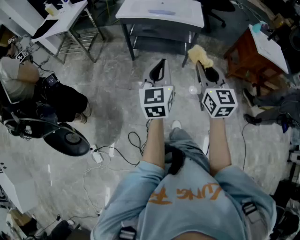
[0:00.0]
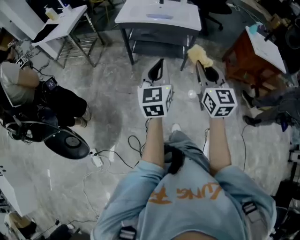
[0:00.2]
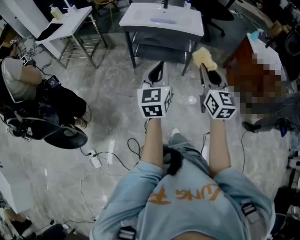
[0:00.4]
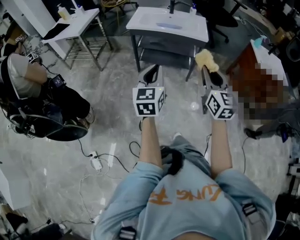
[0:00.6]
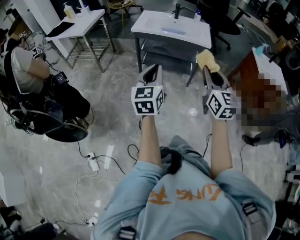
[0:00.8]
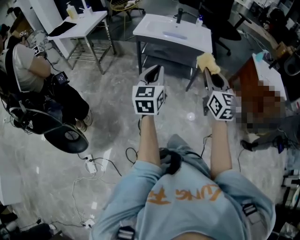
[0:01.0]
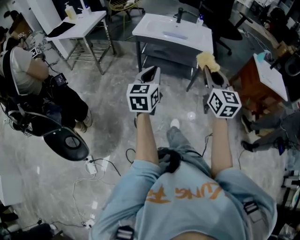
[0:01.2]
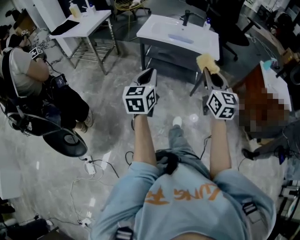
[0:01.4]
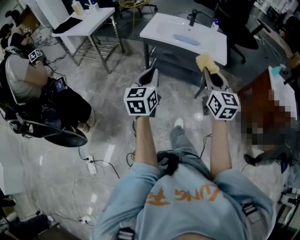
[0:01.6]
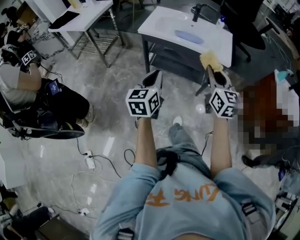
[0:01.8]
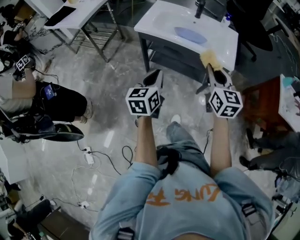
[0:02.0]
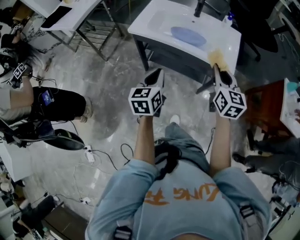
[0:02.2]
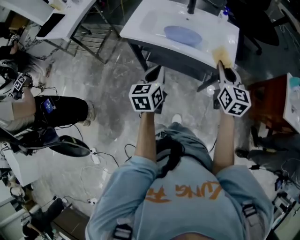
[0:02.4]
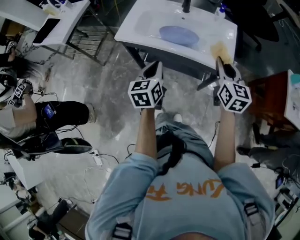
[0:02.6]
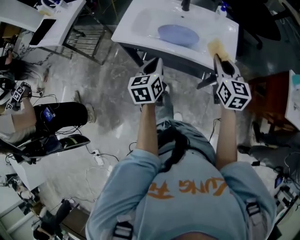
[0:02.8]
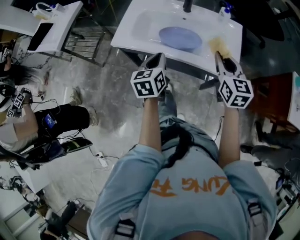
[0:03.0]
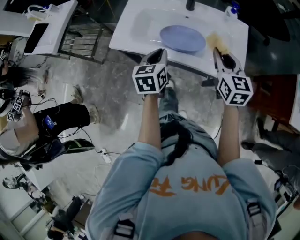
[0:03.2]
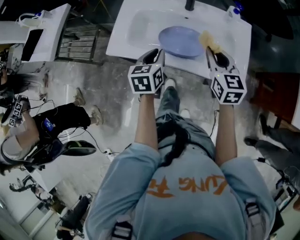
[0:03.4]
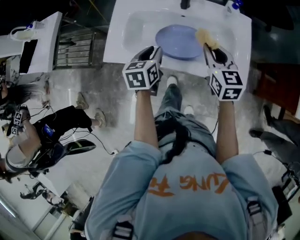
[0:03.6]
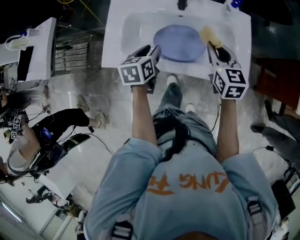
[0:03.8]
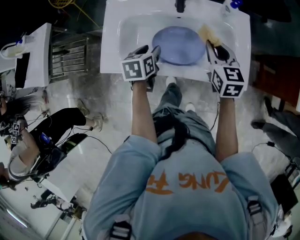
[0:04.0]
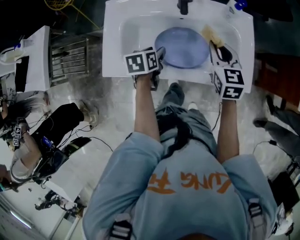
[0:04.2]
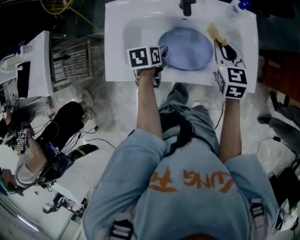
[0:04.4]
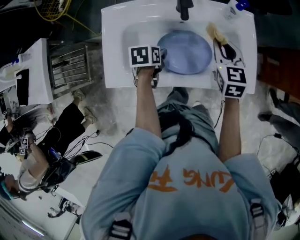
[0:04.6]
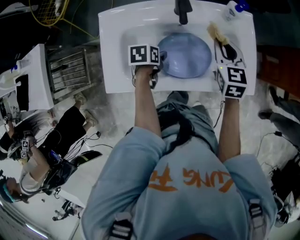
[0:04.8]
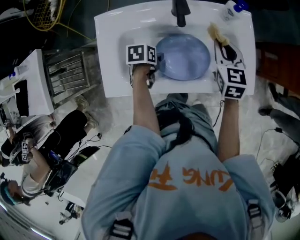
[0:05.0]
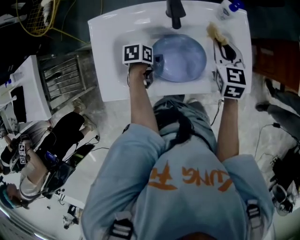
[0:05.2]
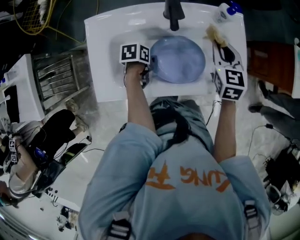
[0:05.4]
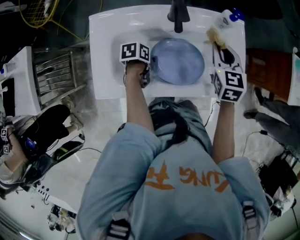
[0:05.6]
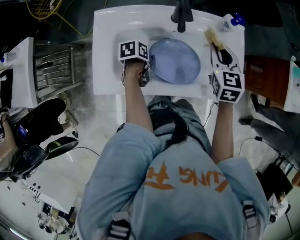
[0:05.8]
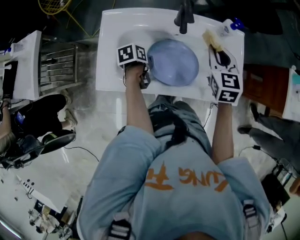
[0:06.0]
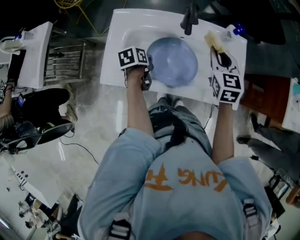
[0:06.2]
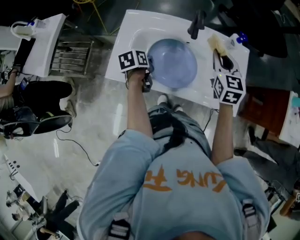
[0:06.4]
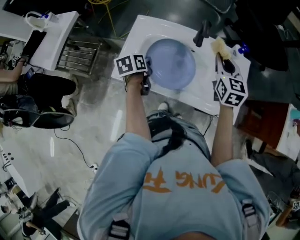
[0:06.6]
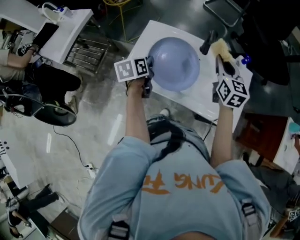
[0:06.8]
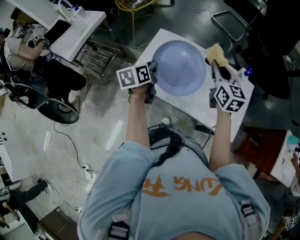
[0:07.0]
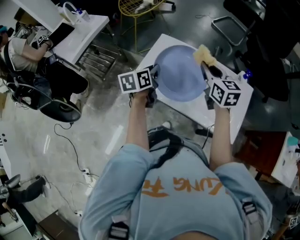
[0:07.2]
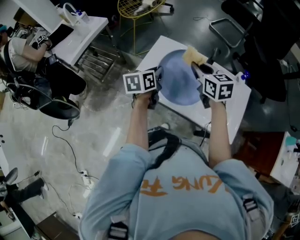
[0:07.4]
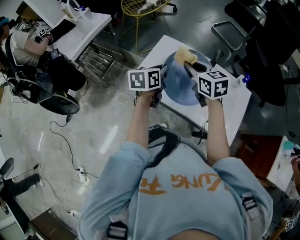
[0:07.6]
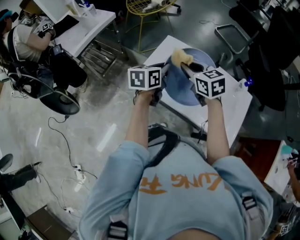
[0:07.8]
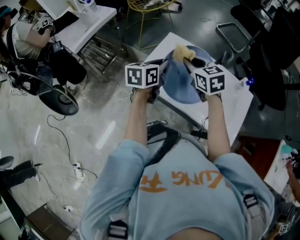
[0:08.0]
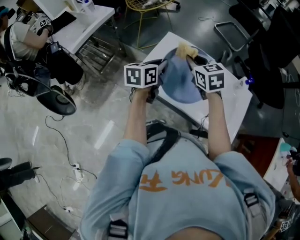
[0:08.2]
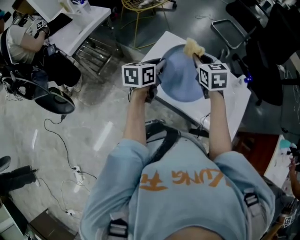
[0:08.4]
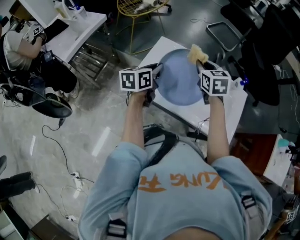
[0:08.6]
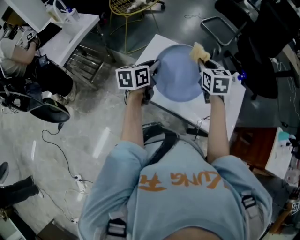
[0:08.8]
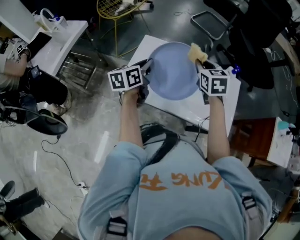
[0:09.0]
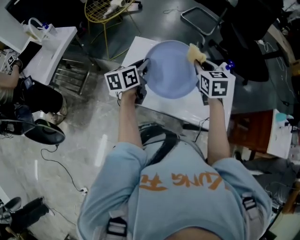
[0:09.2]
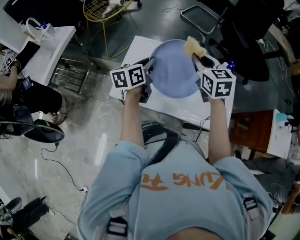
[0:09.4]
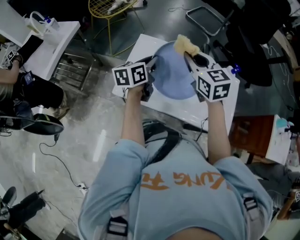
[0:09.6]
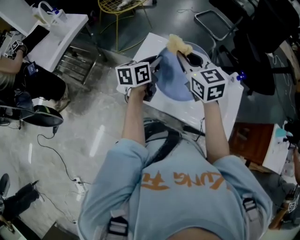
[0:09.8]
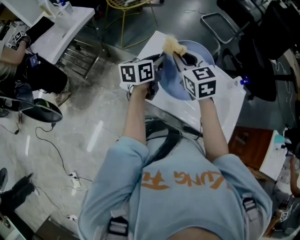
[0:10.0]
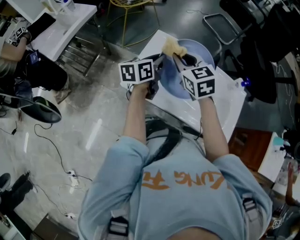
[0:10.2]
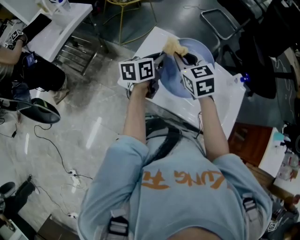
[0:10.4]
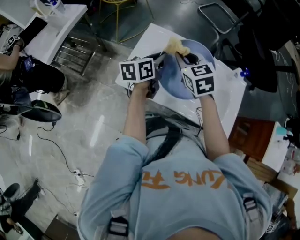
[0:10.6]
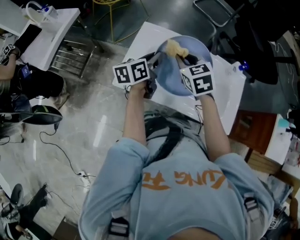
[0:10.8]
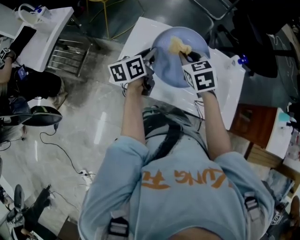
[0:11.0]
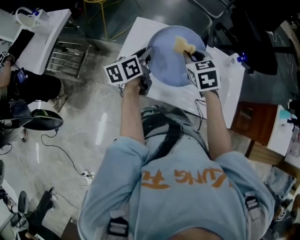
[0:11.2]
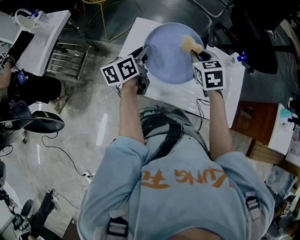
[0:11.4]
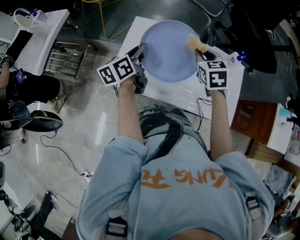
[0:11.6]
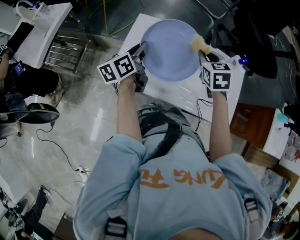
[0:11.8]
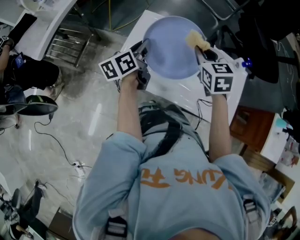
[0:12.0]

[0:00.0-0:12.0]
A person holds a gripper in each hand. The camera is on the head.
0.0 to 1.6 s: The right gripper heads forward, covering about 20 cm; the left gripper heads forward and to the left, covering approximately 20 cm.
1.6 to 3.0 s: Both grippers are carried forward, approximately 40 cm.
3.0 to 4.4 s: The left gripper changes place by approximately 25 cm, tips its fingers downward by roughly 30 degrees, and opens up, while the right gripper moves about 20 cm.
4.4 to 6.0 s: The left gripper changes its angle by approximately 20 degrees, and closes its fingers, while the right gripper ends up roughly 5 cm from where it was.
6.0 to 7.6 s: The right gripper ends up about 25 cm from where it was, and changes its angle by roughly 40 degrees, while the left gripper goes some 25 cm upward, and tips its fingers upward by some 30 degrees.
7.6 to 9.0 s: The right gripper is displaced to the right by about 10 cm, and changes its angle by roughly 30 degrees.
9.0 to 10.4 s: The right gripper moves to the left, about 15 cm, and changes its angle by some 20 degrees.
10.4 to 12.0 s: The right gripper goes some 10 cm to the right.

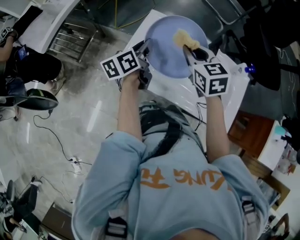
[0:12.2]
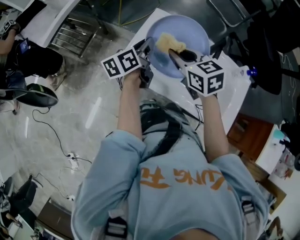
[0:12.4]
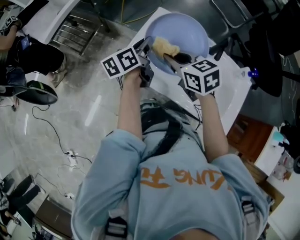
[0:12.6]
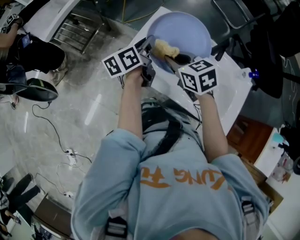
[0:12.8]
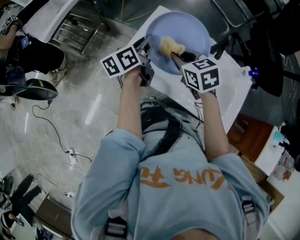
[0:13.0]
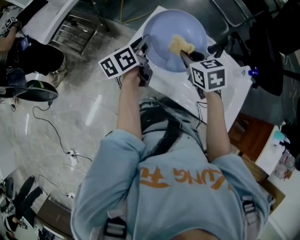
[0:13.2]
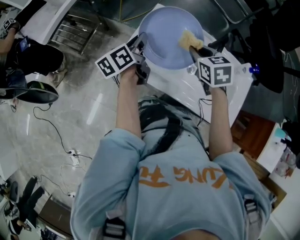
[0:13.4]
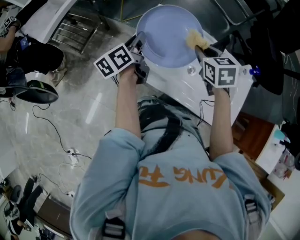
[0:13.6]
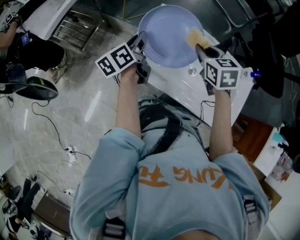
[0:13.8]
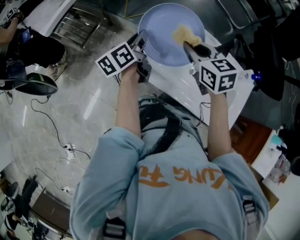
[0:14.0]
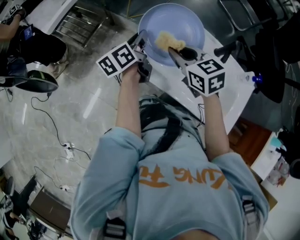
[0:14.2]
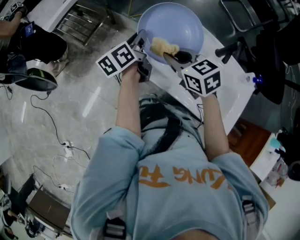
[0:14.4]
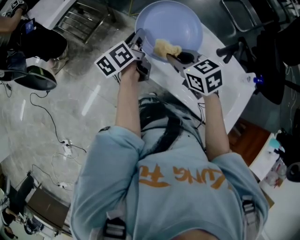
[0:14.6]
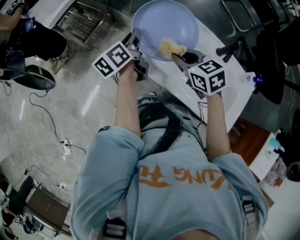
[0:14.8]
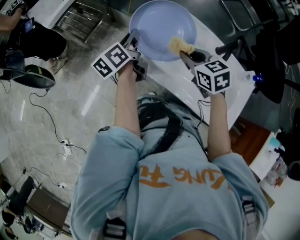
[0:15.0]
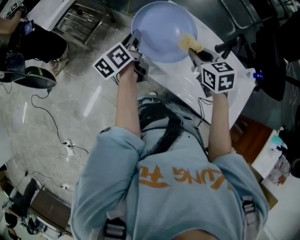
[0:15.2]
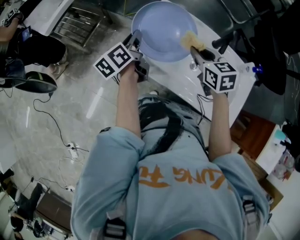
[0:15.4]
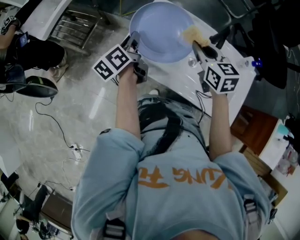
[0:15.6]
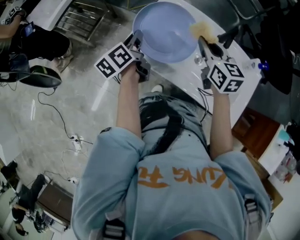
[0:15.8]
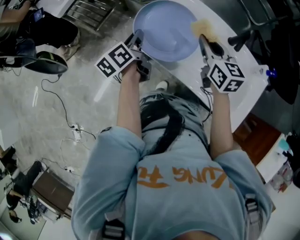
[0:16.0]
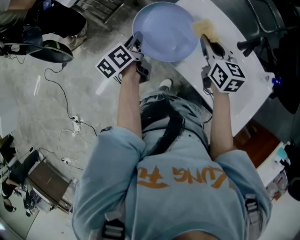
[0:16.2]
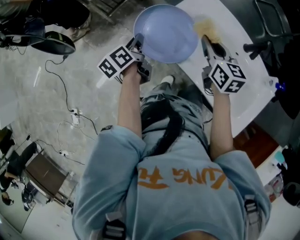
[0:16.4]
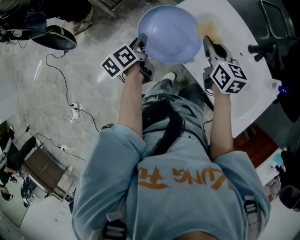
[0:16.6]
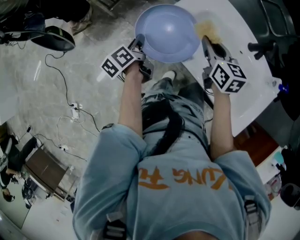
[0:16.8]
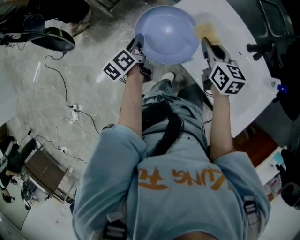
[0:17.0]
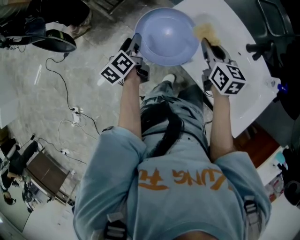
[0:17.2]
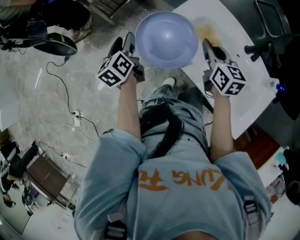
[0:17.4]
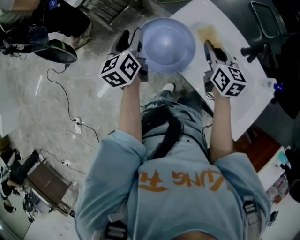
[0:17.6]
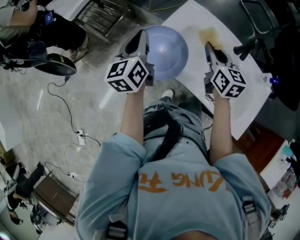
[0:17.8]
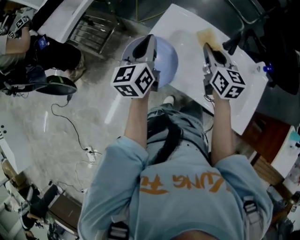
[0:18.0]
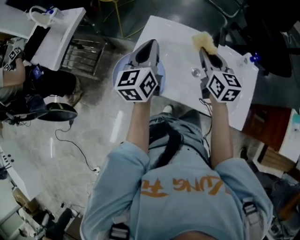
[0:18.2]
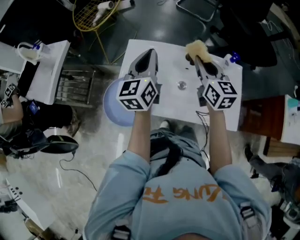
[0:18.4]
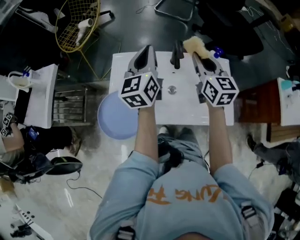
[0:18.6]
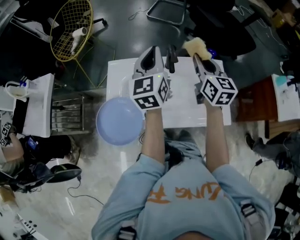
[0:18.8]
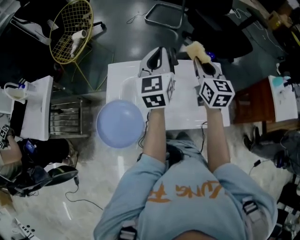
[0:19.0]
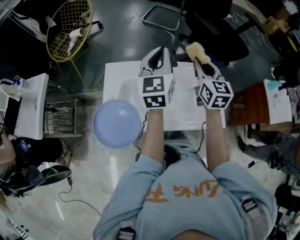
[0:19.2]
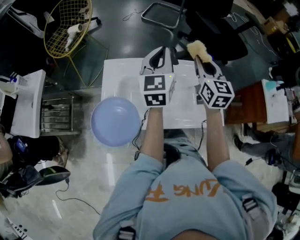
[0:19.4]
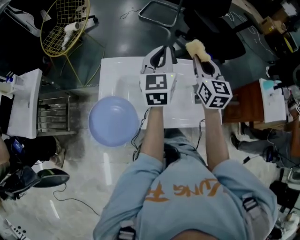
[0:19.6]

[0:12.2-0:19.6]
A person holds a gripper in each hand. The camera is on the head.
12.2 to 13.6 s: The left gripper travels to the left by about 5 cm; the right gripper travels to the left and back again, some 10 cm each way.
13.6 to 15.2 s: The left gripper is displaced to the left by about 5 cm. The right gripper travels to the left and back again, some 15 cm each way.
15.2 to 16.6 s: The right gripper is displaced to the left by approximately 5 cm, and turns by roughly 20 degrees; the left gripper moves backward, to the left and downward, approximately 15 cm.
16.6 to 18.2 s: The right gripper changes place by approximately 15 cm, and turns by roughly 30 degrees. The left gripper shifts by about 30 cm, rotates some 60 degrees, and opens, then closes once more.
18.2 to 19.6 s: The right gripper is displaced to the right and upward by about 15 cm, and rotates some 30 degrees; the left gripper shifts roughly 20 cm to the right and forward, and changes its angle by some 20 degrees.

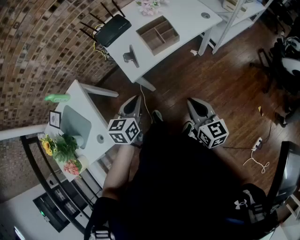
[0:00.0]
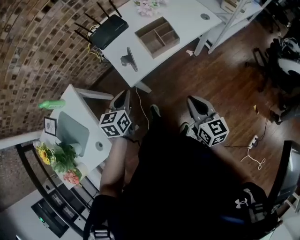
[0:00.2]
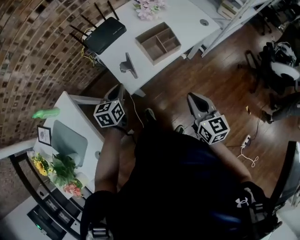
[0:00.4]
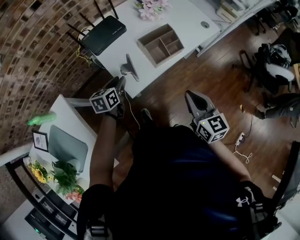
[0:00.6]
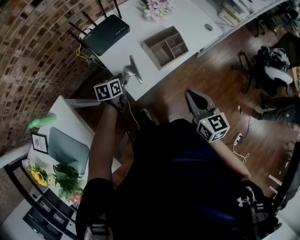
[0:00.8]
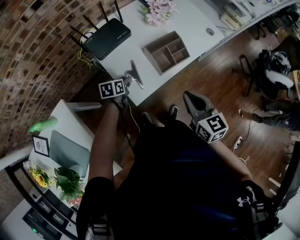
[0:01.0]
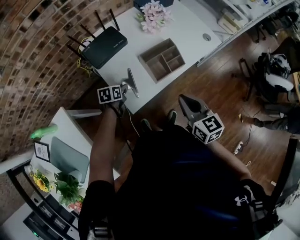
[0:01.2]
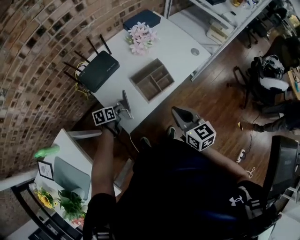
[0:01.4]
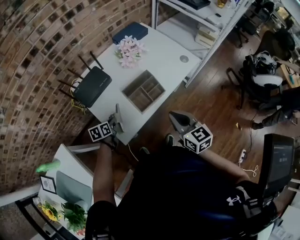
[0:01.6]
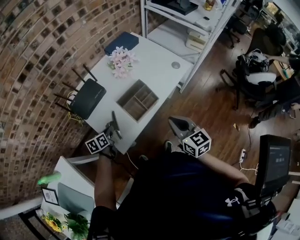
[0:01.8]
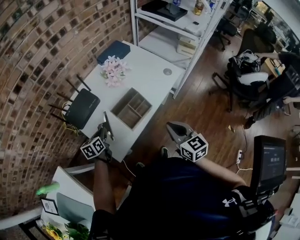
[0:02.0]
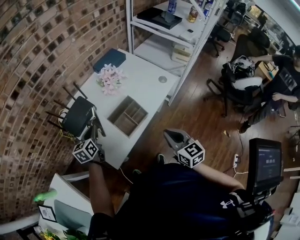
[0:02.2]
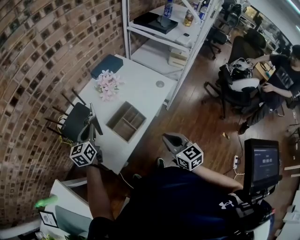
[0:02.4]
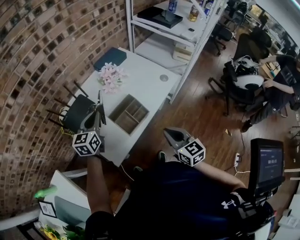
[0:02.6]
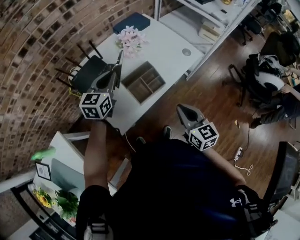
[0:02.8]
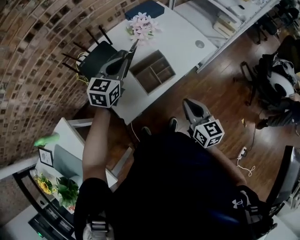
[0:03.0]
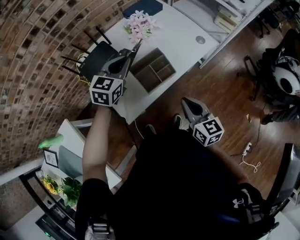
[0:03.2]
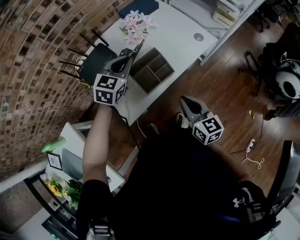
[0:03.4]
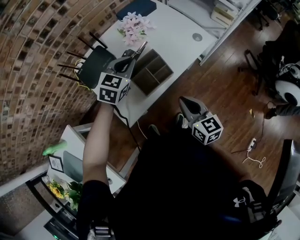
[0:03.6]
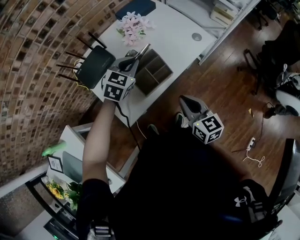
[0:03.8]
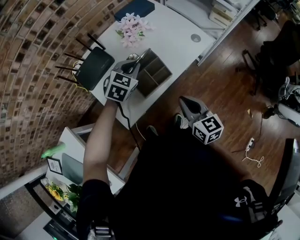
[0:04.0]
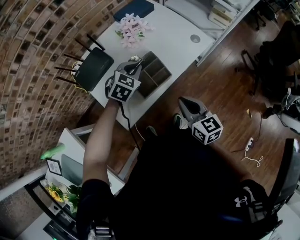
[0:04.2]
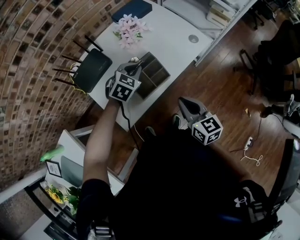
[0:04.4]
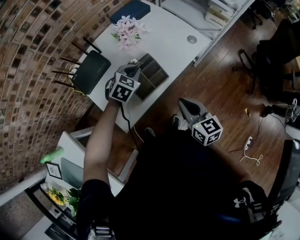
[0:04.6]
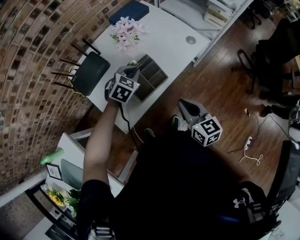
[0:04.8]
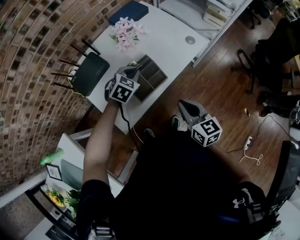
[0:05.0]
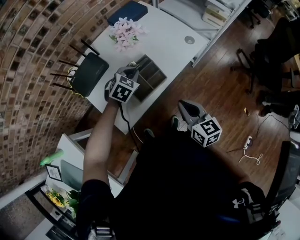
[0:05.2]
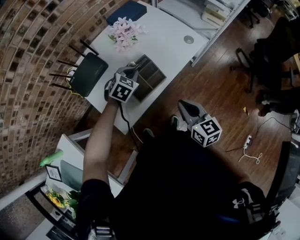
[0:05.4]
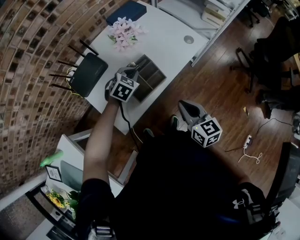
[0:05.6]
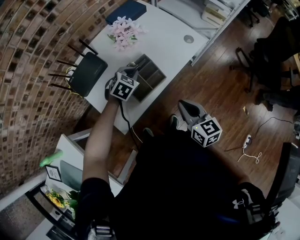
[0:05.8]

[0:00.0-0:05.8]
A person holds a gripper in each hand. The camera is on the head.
0.0 to 1.4 s: The left gripper goes about 35 cm forward, downward and to the left, changes its angle by roughly 30 degrees, and opens and closes again. Meanwhile the right gripper shifts some 20 cm forward.
1.4 to 2.8 s: The left gripper goes some 25 cm upward, and tips its fingers upward by roughly 30 degrees. Meanwhile the right gripper shifts approximately 10 cm to the right.
2.8 to 4.4 s: The left gripper moves downward and to the right, approximately 15 cm, and changes its angle by approximately 40 degrees.
4.4 to 5.8 s: The left gripper shifts by approximately 5 cm.
